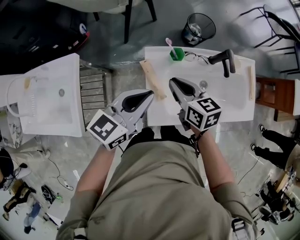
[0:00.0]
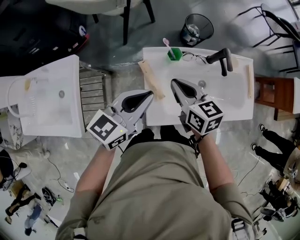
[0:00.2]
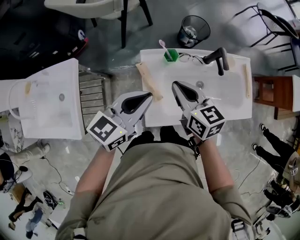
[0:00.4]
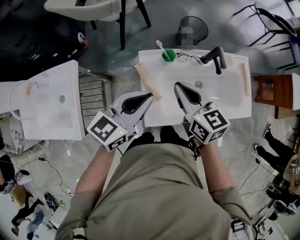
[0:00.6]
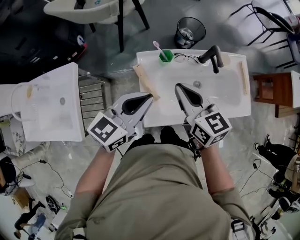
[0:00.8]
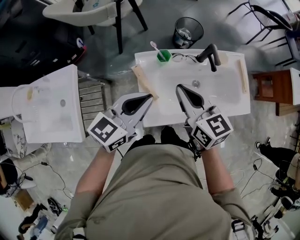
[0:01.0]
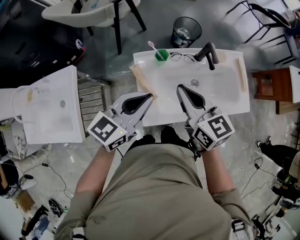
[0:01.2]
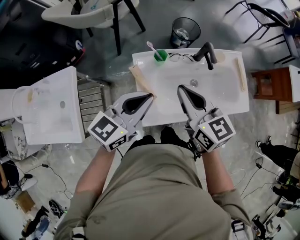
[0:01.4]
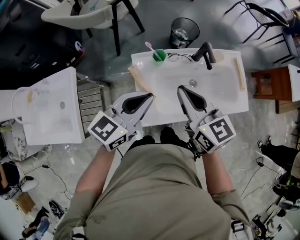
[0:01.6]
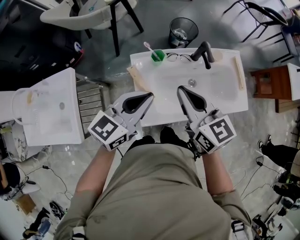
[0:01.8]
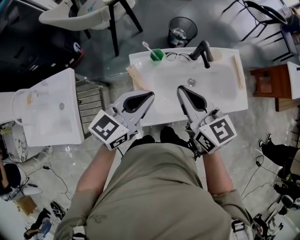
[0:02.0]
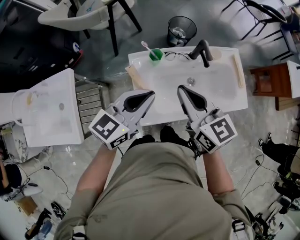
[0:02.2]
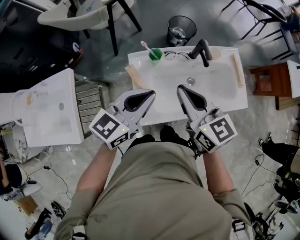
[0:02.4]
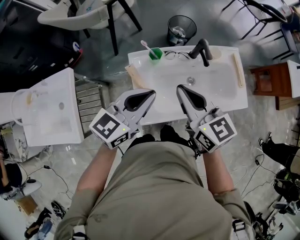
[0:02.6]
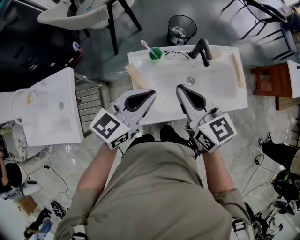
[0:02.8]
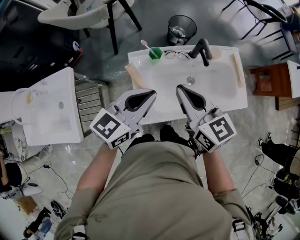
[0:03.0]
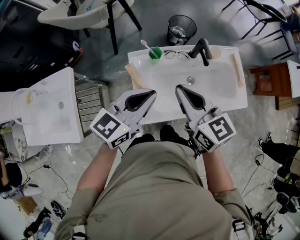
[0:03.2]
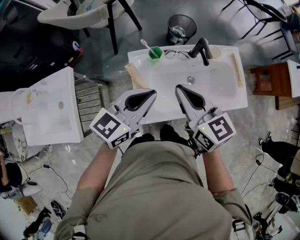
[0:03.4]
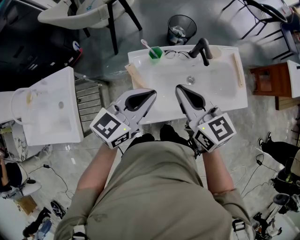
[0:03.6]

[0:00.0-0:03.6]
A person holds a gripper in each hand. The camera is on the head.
0:00.0 to 0:01.8: The right gripper moves upward and to the right, roughly 15 cm, and changes its angle by approximately 20 degrees, while the left gripper moves to the right, some 5 cm.
0:01.8 to 0:03.6: The grippers make only small movements.

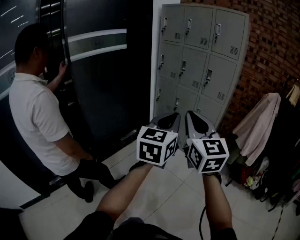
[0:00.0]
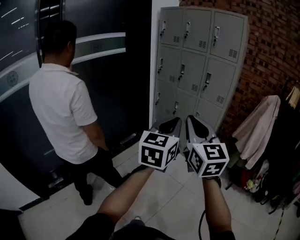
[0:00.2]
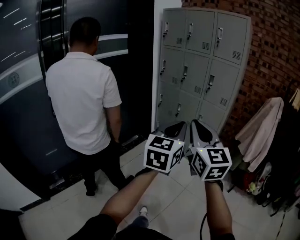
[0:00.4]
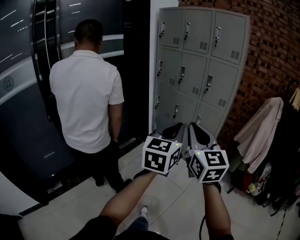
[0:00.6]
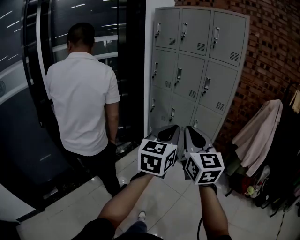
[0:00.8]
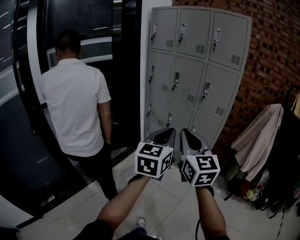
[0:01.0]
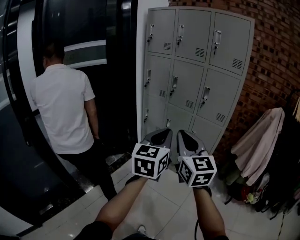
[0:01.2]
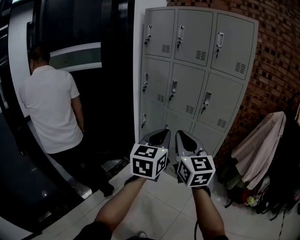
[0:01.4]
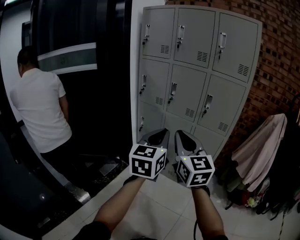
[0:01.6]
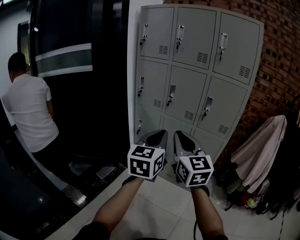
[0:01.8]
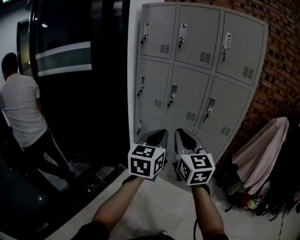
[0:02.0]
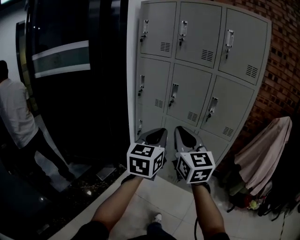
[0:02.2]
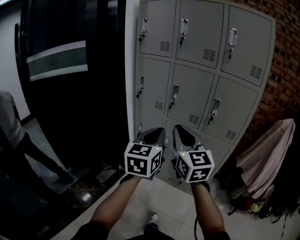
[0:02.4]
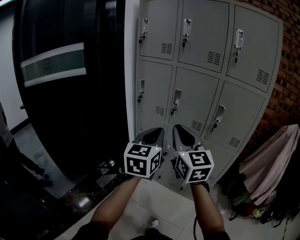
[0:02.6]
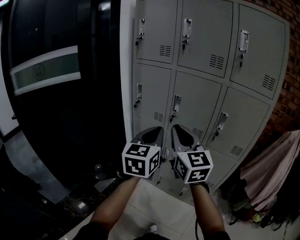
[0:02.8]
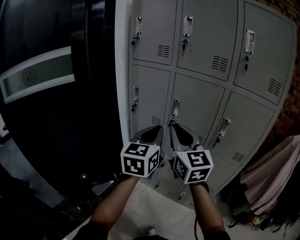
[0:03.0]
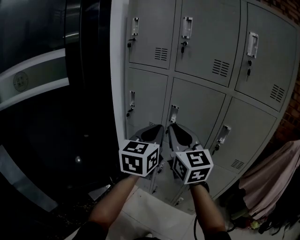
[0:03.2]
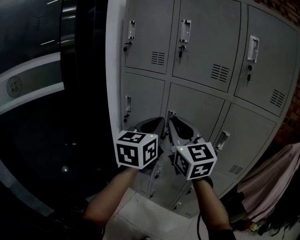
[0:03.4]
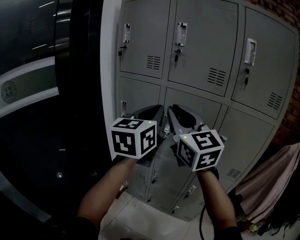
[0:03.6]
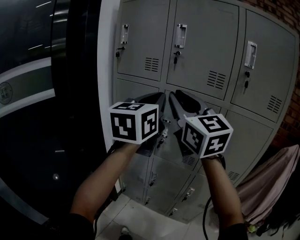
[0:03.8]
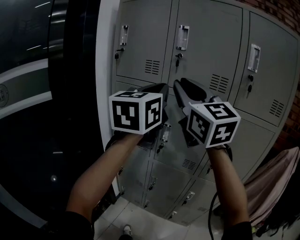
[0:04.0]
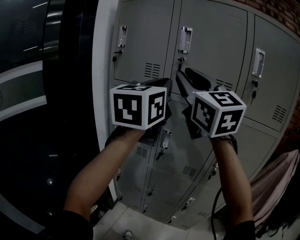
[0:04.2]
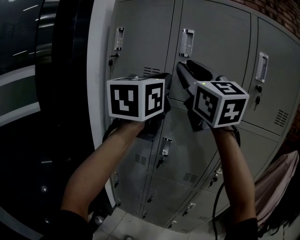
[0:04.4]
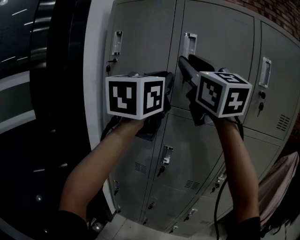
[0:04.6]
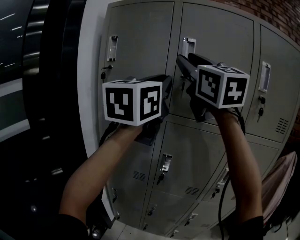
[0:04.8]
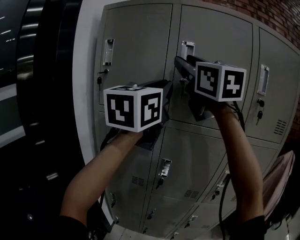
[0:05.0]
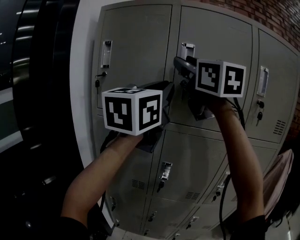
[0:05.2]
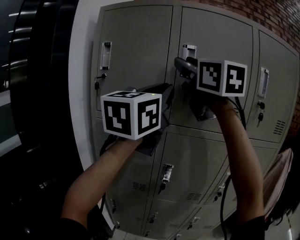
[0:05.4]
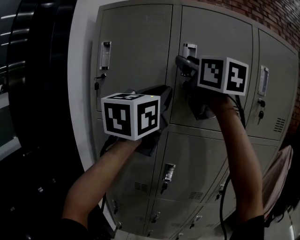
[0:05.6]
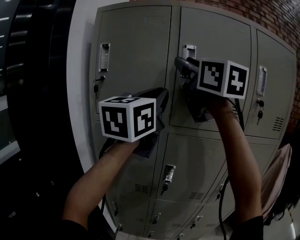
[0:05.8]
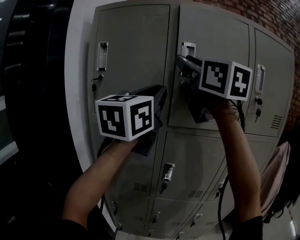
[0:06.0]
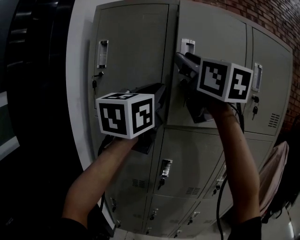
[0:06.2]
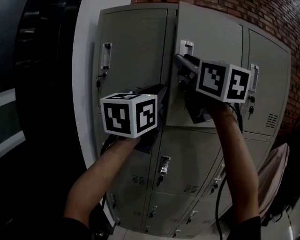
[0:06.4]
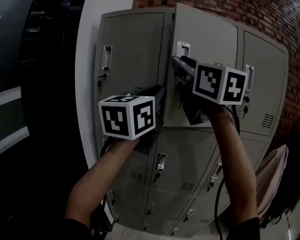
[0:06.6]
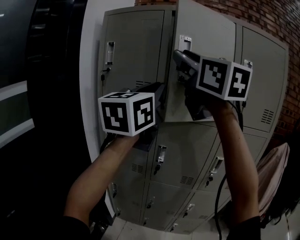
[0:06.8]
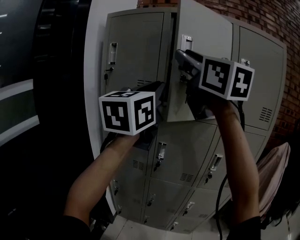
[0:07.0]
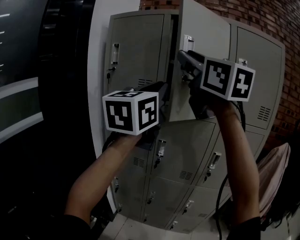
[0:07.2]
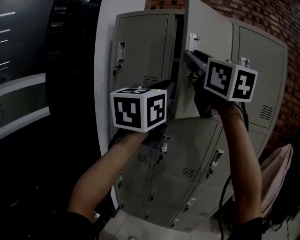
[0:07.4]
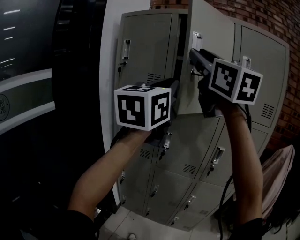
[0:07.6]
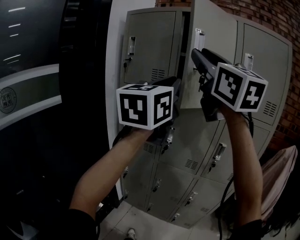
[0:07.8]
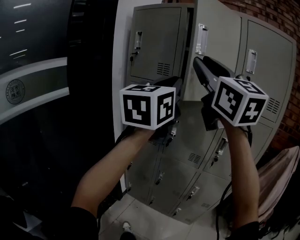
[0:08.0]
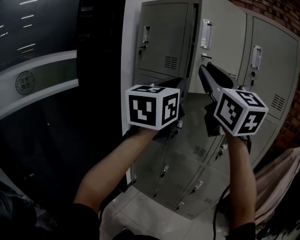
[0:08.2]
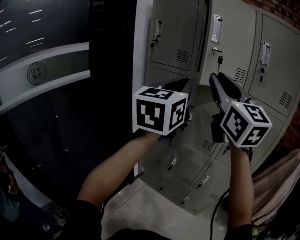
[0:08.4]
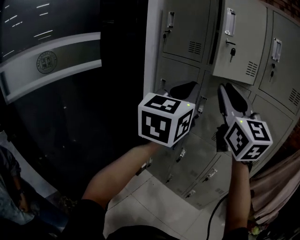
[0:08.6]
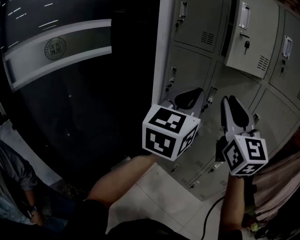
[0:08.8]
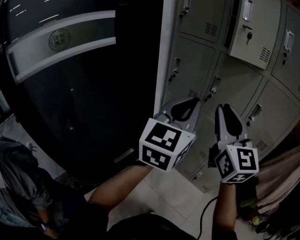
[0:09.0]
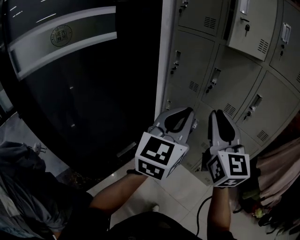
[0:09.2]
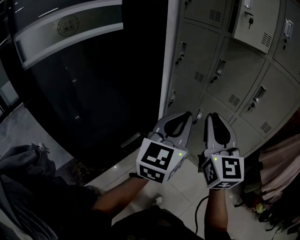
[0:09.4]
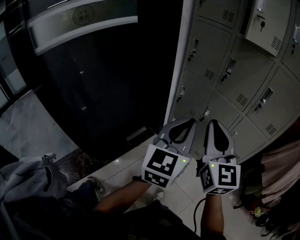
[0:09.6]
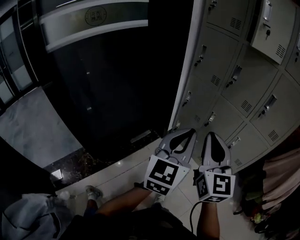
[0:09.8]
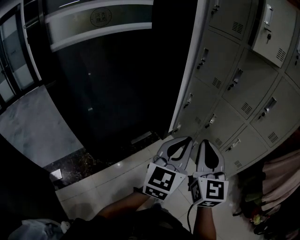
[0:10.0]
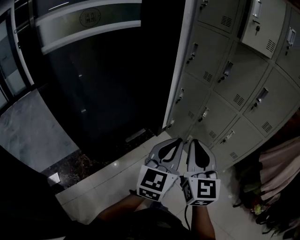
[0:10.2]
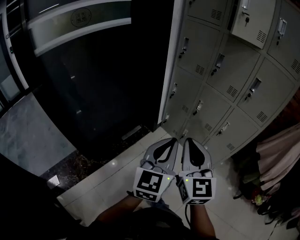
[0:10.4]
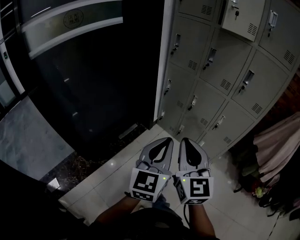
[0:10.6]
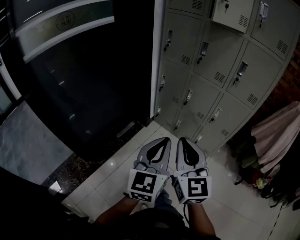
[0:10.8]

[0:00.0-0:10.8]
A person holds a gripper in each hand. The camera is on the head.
0:00.0 to 0:01.6: Both grippers move forward, some 40 cm.
0:01.6 to 0:03.0: Both grippers travel together forward, some 30 cm.
0:03.0 to 0:04.6: The two grippers go approximately 35 cm upward and forward. The left gripper rotates some 20 degrees; the right gripper turns by roughly 20 degrees, and opens.
0:06.2 to 0:07.8: Both grippers travel together backward, roughly 20 cm.
0:07.8 to 0:09.2: Both grippers move downward and backward, roughly 35 cm.
0:09.2 to 0:10.8: Both grippers move backward and downward, roughly 25 cm.

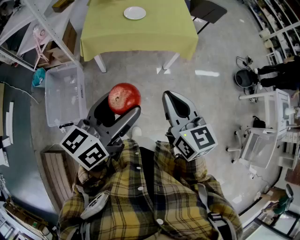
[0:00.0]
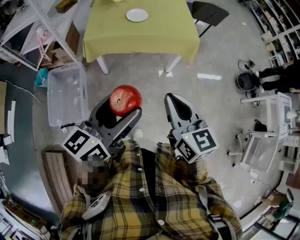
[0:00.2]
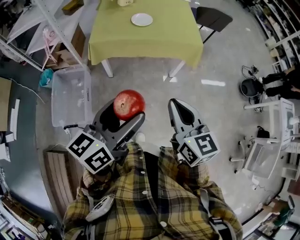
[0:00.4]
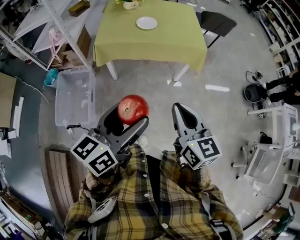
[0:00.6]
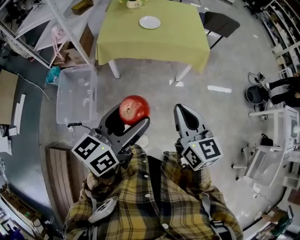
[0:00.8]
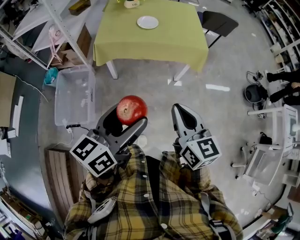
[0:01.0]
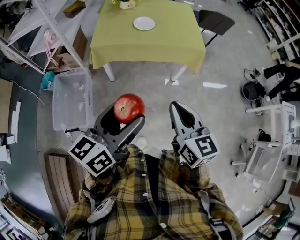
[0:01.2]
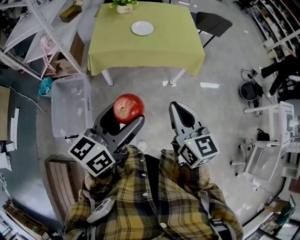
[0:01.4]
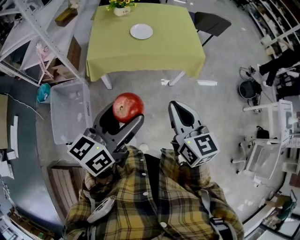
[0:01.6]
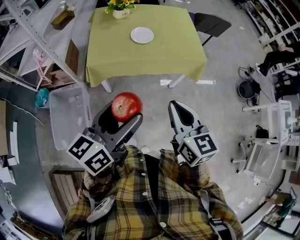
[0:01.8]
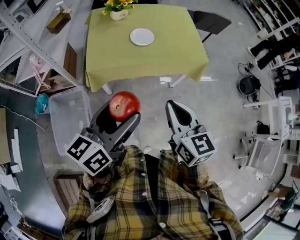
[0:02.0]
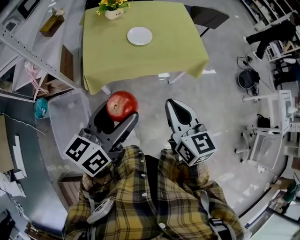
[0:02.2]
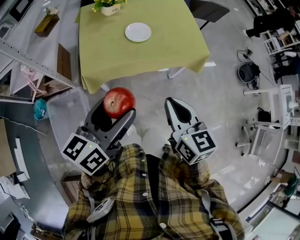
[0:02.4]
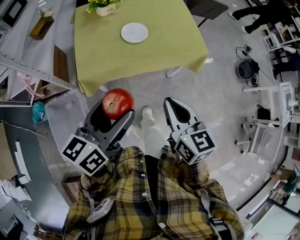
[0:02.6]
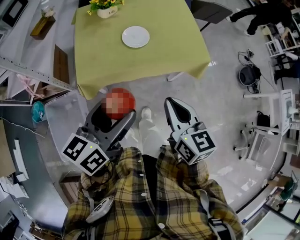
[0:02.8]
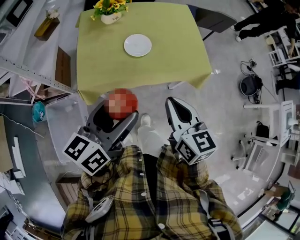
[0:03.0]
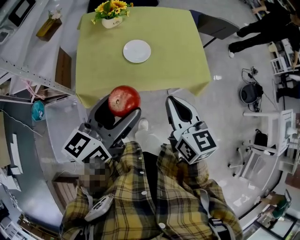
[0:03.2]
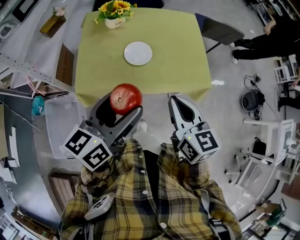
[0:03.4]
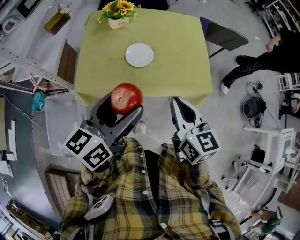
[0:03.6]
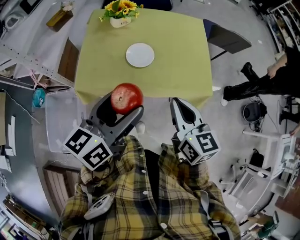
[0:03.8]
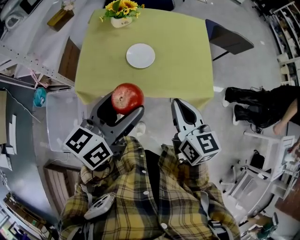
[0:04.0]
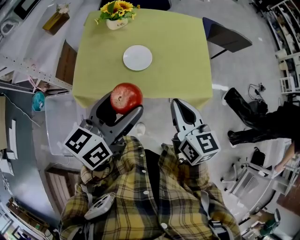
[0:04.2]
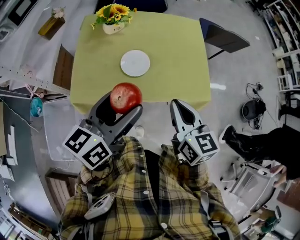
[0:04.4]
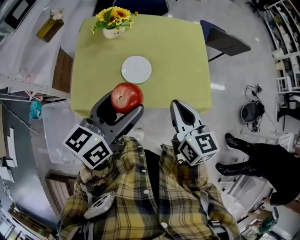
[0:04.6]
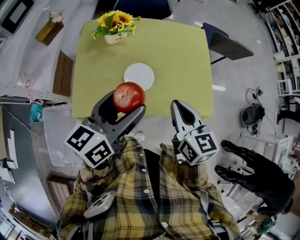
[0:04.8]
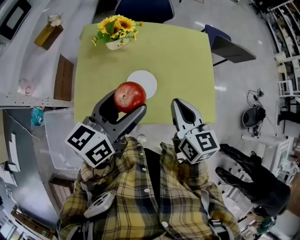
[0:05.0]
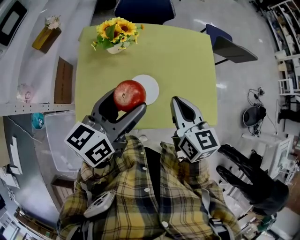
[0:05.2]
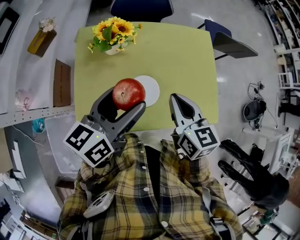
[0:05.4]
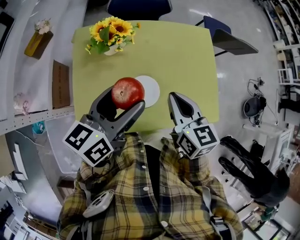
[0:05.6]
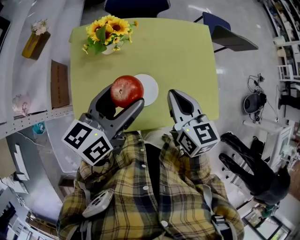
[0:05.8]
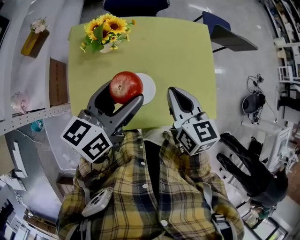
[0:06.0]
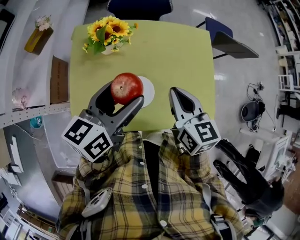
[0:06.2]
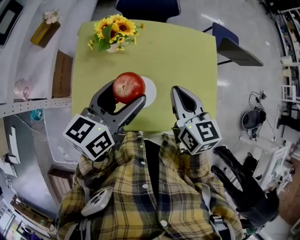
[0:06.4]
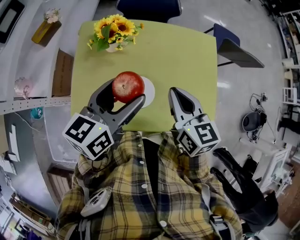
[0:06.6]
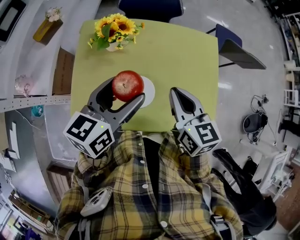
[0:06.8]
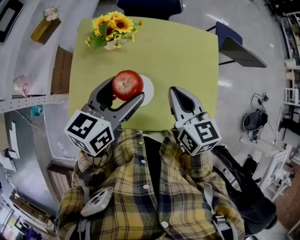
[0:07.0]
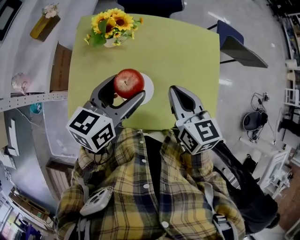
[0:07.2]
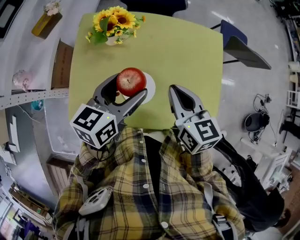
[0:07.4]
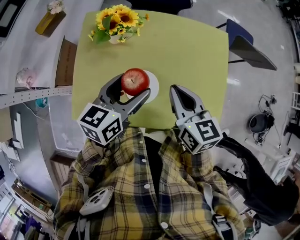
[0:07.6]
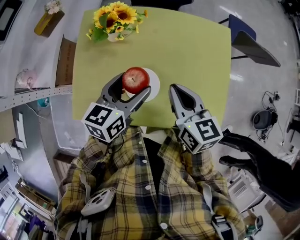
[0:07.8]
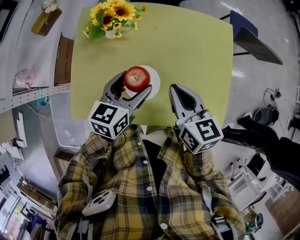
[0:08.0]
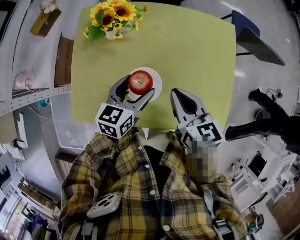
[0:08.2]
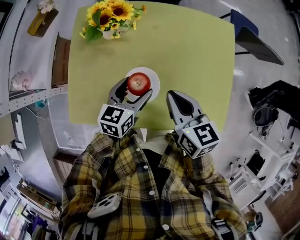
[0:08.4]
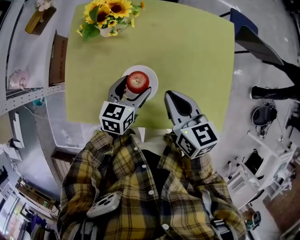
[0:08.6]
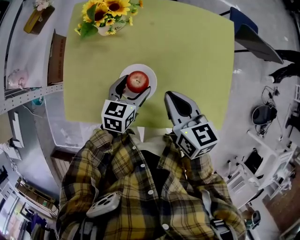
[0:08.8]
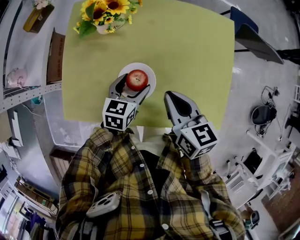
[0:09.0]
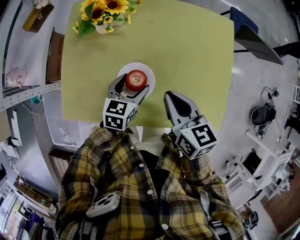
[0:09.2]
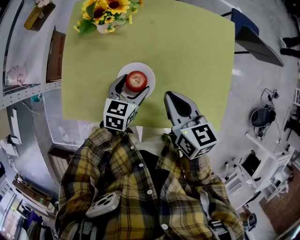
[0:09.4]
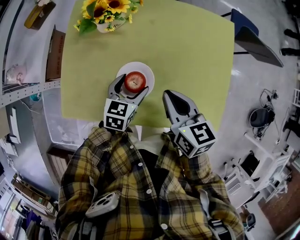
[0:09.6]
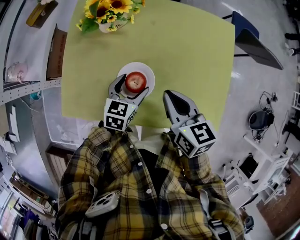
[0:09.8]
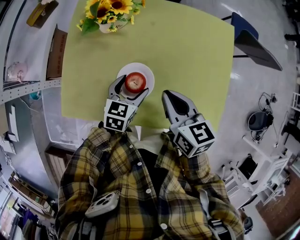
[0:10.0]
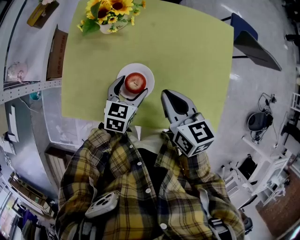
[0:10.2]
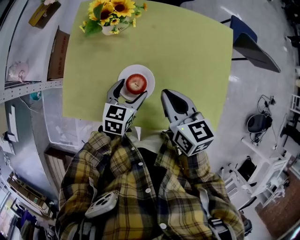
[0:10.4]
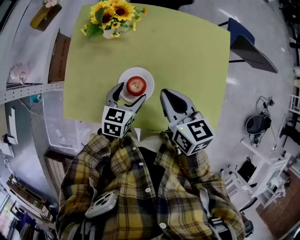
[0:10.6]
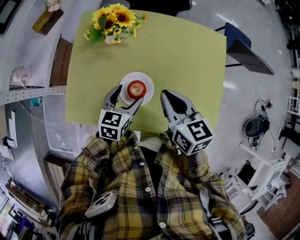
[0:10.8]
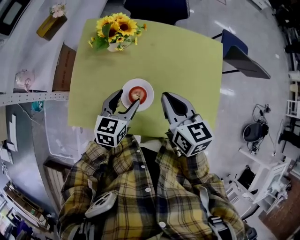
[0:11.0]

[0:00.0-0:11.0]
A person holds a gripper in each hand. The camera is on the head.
0:00.0 to 0:01.6: Both grippers travel together forward, about 10 cm.
0:01.6 to 0:03.2: Both grippers move forward, roughly 25 cm.
0:03.2 to 0:04.8: The grippers both shift forward by about 20 cm.
0:04.8 to 0:06.2: Both grippers move forward, approximately 15 cm.
0:06.2 to 0:07.8: The left gripper goes some 10 cm downward.
0:07.8 to 0:09.4: The right gripper shifts approximately 5 cm downward. Meanwhile the left gripper travels downward by roughly 15 cm.
0:09.4 to 0:11.0: The grippers both shift upward by roughly 10 cm.
